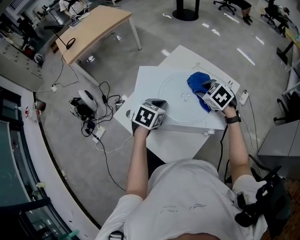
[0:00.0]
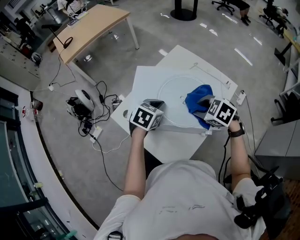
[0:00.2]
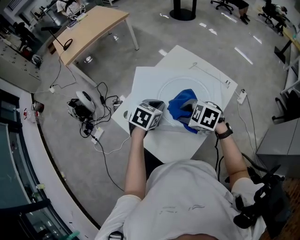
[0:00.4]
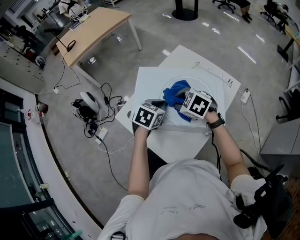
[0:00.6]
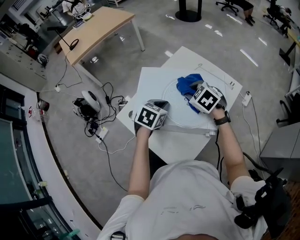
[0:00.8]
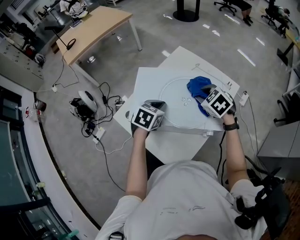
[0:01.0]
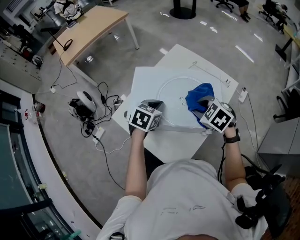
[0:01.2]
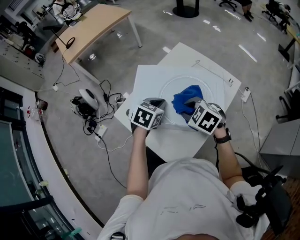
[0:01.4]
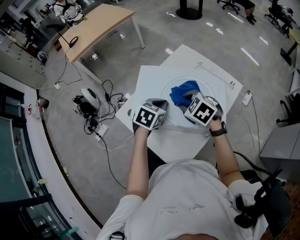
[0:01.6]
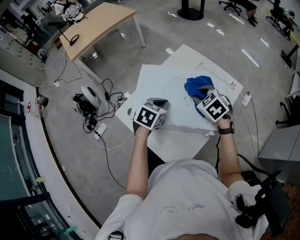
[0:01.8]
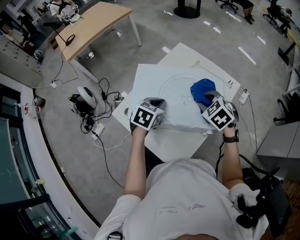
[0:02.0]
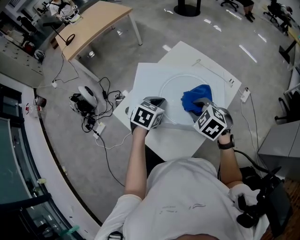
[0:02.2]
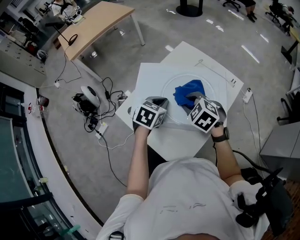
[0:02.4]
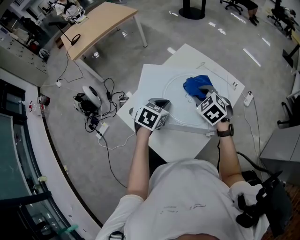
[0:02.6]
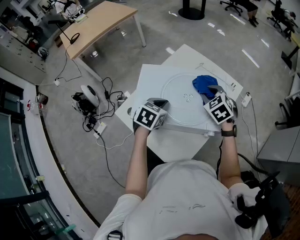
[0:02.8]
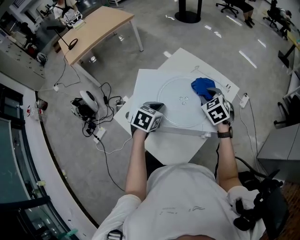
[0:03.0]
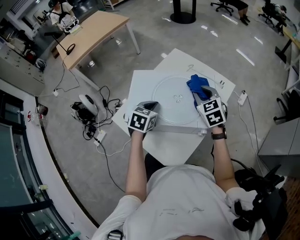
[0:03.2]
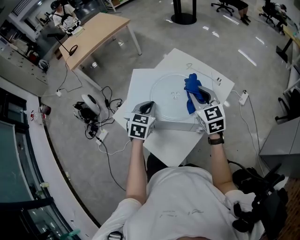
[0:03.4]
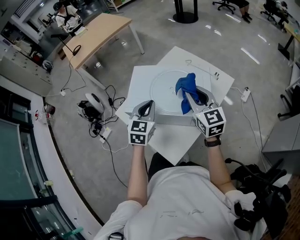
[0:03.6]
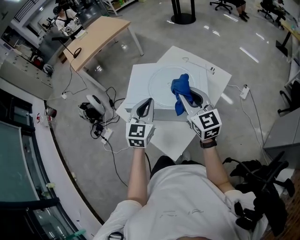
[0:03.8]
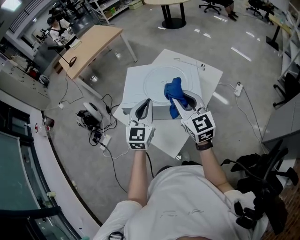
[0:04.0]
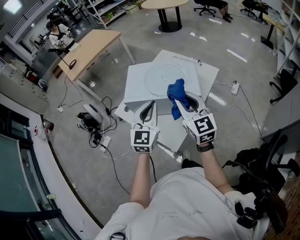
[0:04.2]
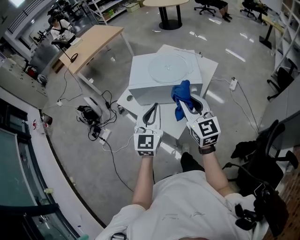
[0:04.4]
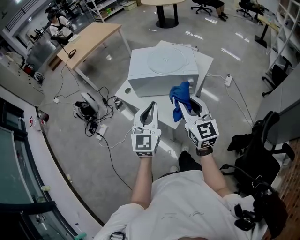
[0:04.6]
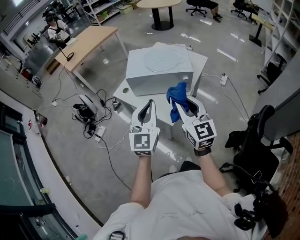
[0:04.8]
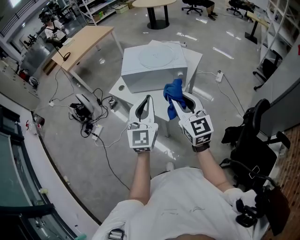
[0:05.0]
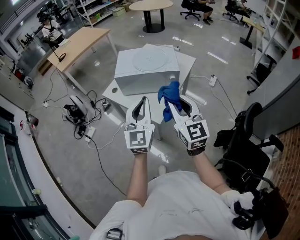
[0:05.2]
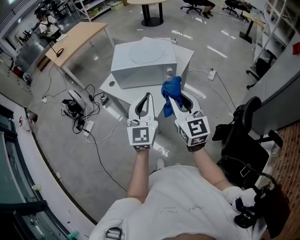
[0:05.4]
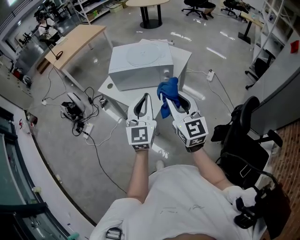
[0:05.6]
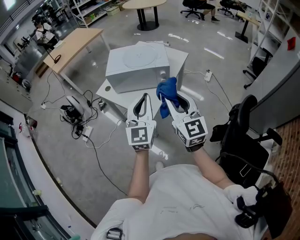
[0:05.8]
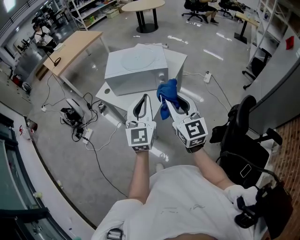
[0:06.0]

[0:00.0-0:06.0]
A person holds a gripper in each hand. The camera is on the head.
0:00.0 to 0:01.6: The right gripper moves left and right over roughly 10 cm, changing direction 2 times.
0:01.6 to 0:03.0: The right gripper goes left and right, about 10 cm each way, reversing 2 times, and changes its angle by approximately 30 degrees.
0:03.0 to 0:04.4: Both grippers move backward and upward, some 35 cm. The right gripper tilts its fingers about 40 degrees upward. The left gripper angles its fingers upward, by roughly 50 degrees.
0:04.4 to 0:06.0: The left gripper travels backward, to the right and upward by roughly 15 cm. The right gripper shifts about 15 cm backward and to the right.

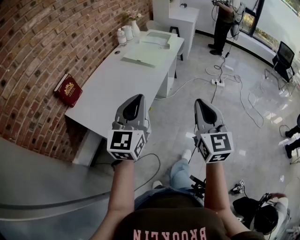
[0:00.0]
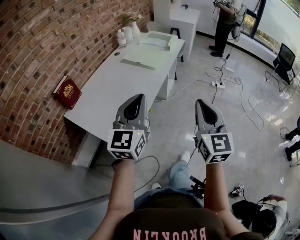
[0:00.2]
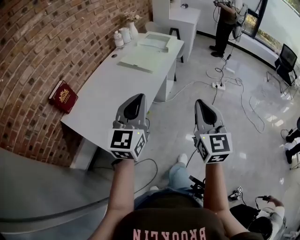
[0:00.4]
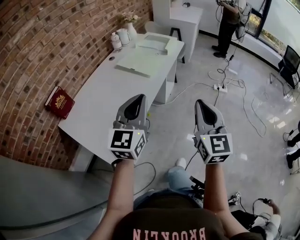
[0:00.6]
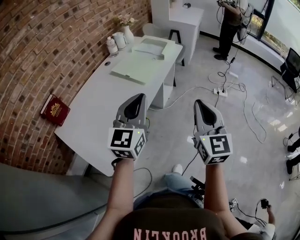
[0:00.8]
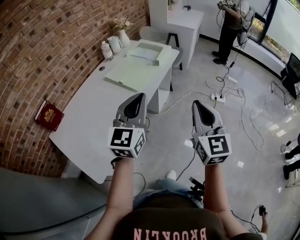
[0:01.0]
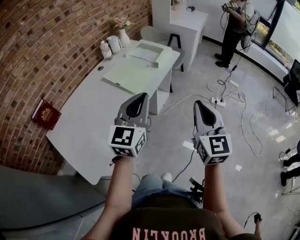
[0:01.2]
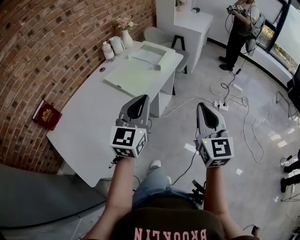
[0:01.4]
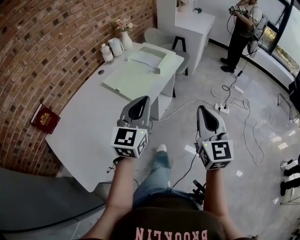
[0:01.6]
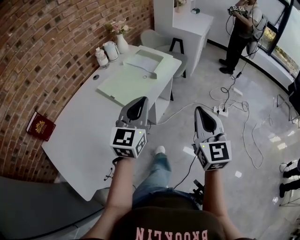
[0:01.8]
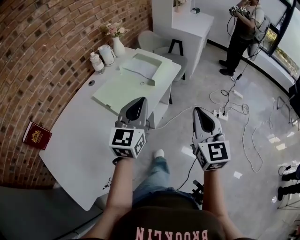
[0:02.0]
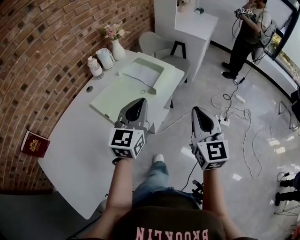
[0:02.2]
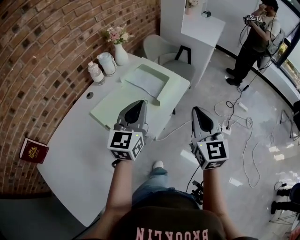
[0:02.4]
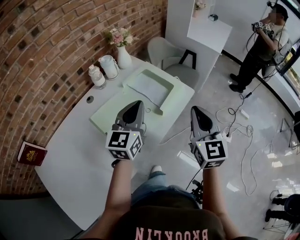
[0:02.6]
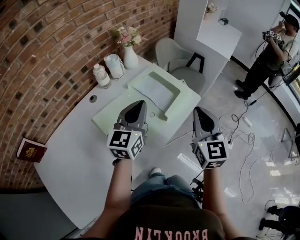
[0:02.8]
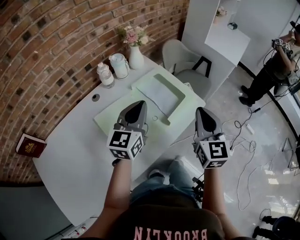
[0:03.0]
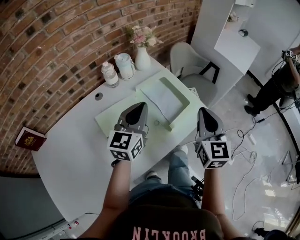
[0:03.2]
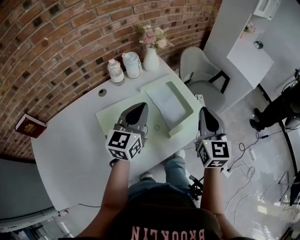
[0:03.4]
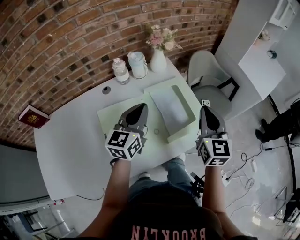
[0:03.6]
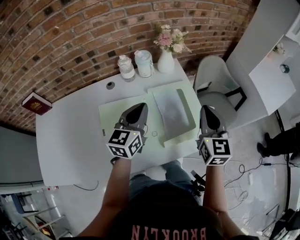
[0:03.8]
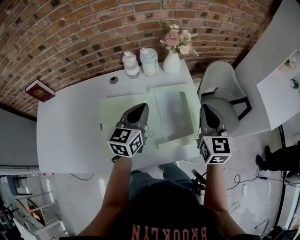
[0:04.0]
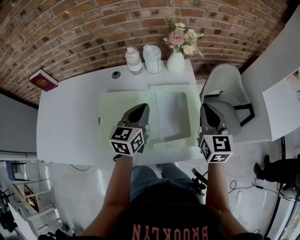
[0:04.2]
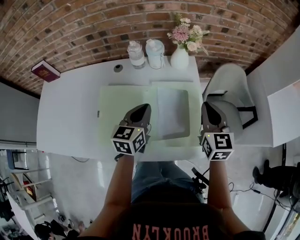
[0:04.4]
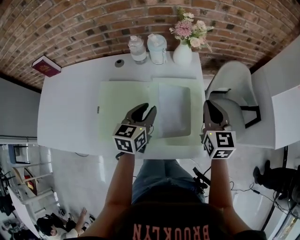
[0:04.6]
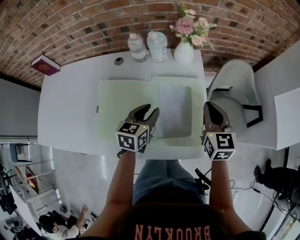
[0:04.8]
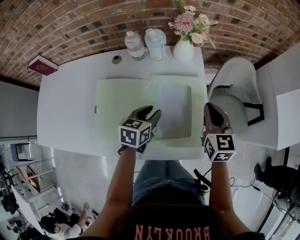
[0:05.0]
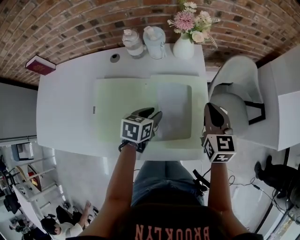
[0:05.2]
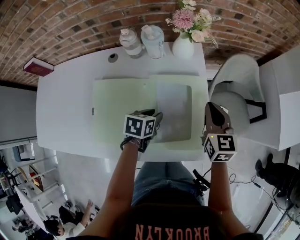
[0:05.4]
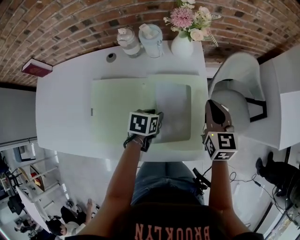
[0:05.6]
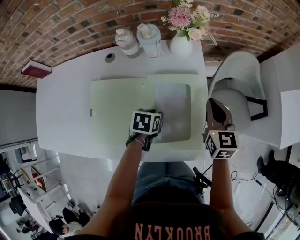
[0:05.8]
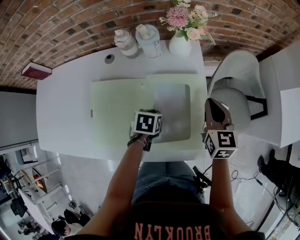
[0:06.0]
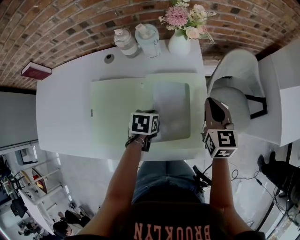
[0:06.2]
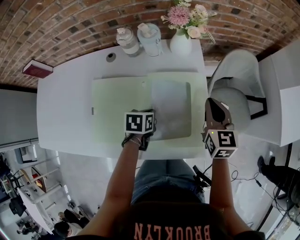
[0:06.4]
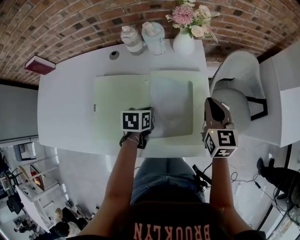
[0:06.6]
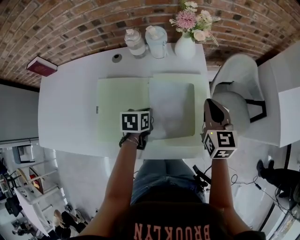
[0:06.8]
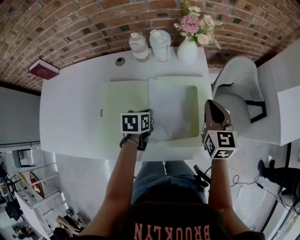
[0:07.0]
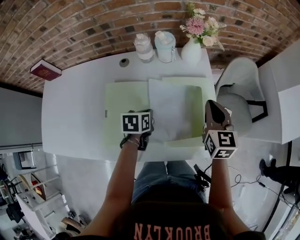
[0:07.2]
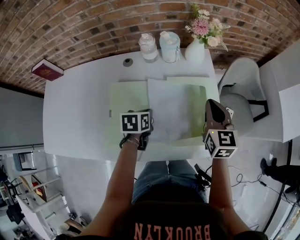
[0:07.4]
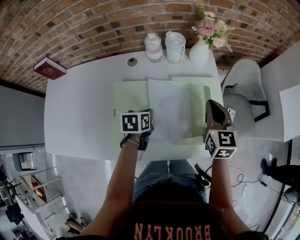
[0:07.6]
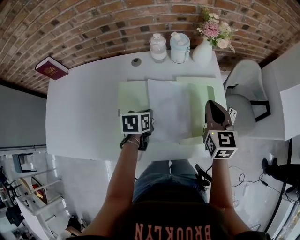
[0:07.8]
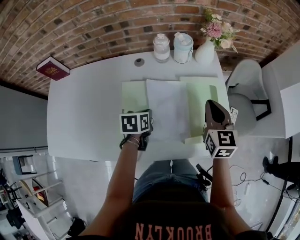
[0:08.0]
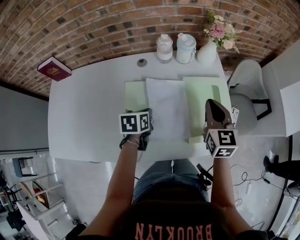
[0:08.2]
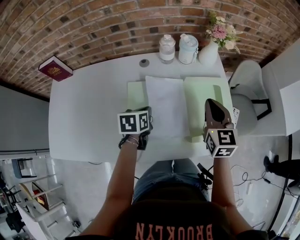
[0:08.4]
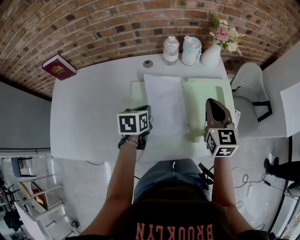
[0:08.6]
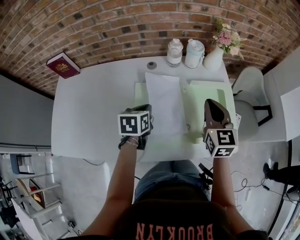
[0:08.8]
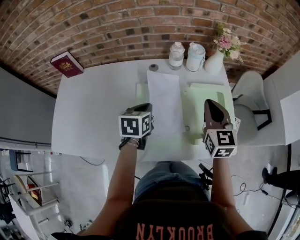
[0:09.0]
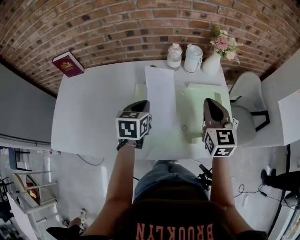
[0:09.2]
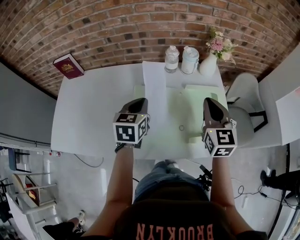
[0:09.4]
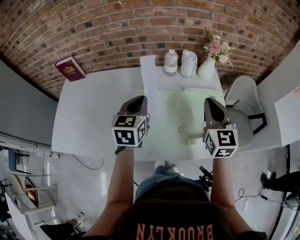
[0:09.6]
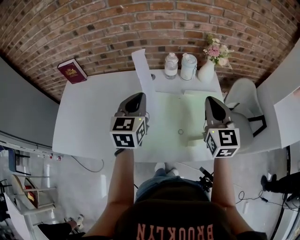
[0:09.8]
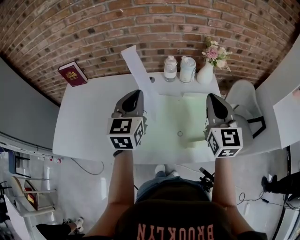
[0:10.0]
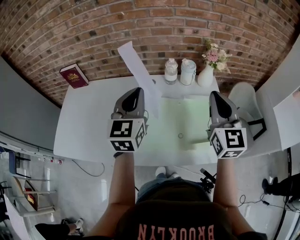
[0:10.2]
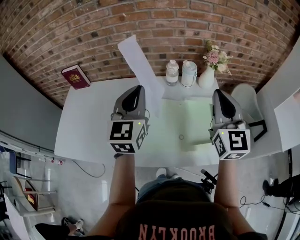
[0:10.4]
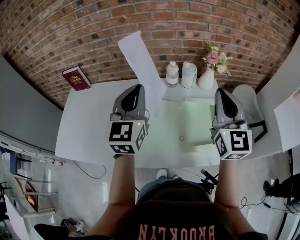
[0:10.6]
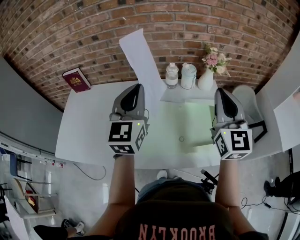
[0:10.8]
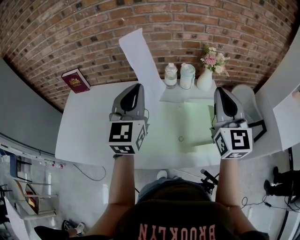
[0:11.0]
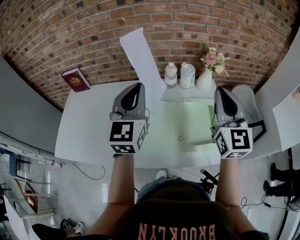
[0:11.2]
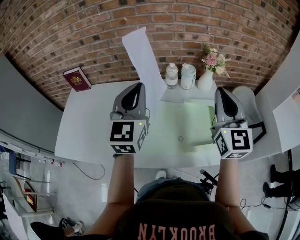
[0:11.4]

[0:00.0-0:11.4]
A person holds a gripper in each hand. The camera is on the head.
0:00.0 to 0:01.4: Both grippers travel together forward and to the right, roughly 35 cm.
0:01.4 to 0:02.8: The pair of grippers is taken forward, roughly 40 cm.
0:02.8 to 0:04.2: The right gripper changes place by roughly 30 cm, and changes its angle by about 40 degrees; the left gripper shifts by about 15 cm, and rotates approximately 40 degrees.
0:04.2 to 0:05.6: The right gripper travels downward and forward by some 10 cm; the left gripper moves downward, some 20 cm, angles its fingers downward, by about 40 degrees, and opens up.
0:05.6 to 0:07.2: The left gripper goes about 10 cm to the left, and closes up. Meanwhile the right gripper moves to the left, approximately 5 cm.
0:07.2 to 0:08.6: The left gripper goes some 15 cm to the left and upward, while the right gripper moves to the left, roughly 15 cm.
0:08.6 to 0:10.0: The left gripper moves upward, about 20 cm, and points its fingers approximately 40 degrees further upward, while the right gripper is displaced upward by roughly 15 cm.
0:10.0 to 0:11.4: The grippers both shift upward by about 10 cm.

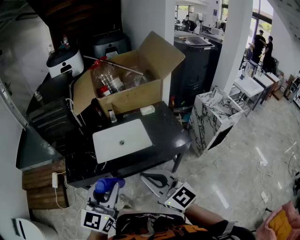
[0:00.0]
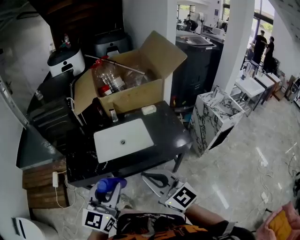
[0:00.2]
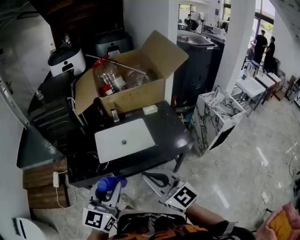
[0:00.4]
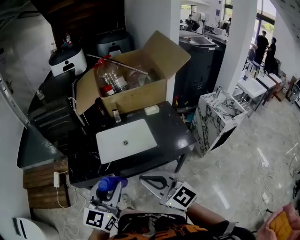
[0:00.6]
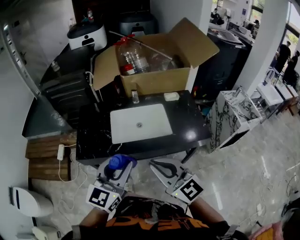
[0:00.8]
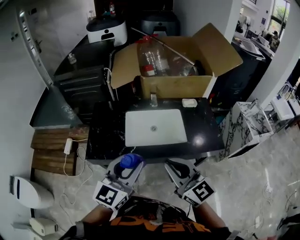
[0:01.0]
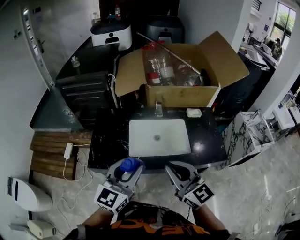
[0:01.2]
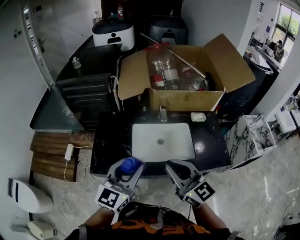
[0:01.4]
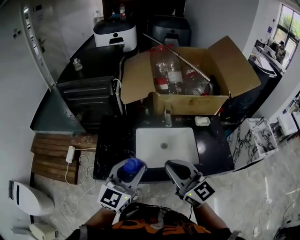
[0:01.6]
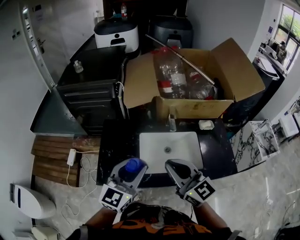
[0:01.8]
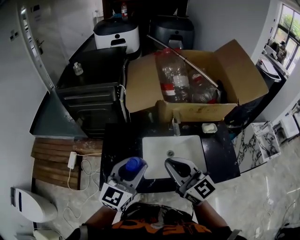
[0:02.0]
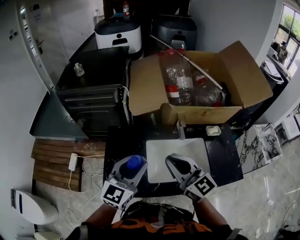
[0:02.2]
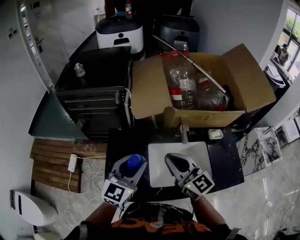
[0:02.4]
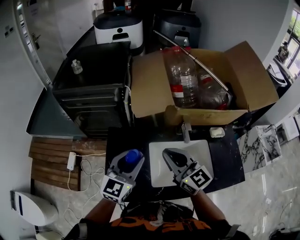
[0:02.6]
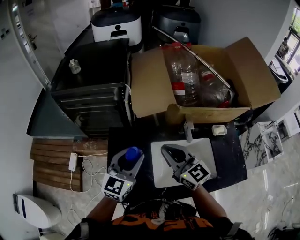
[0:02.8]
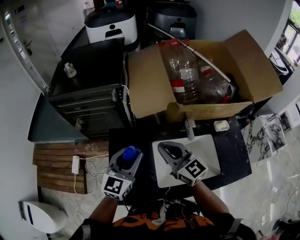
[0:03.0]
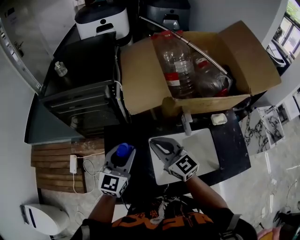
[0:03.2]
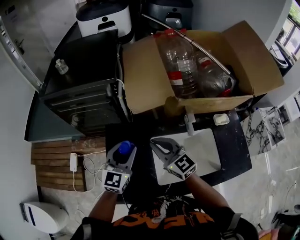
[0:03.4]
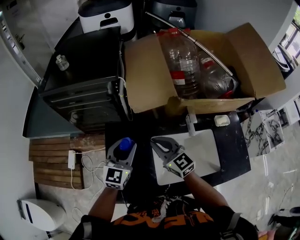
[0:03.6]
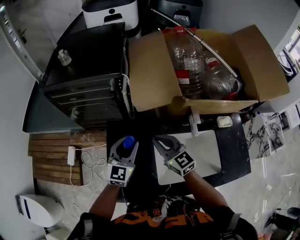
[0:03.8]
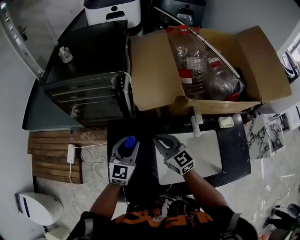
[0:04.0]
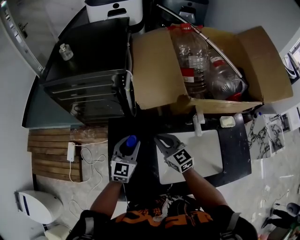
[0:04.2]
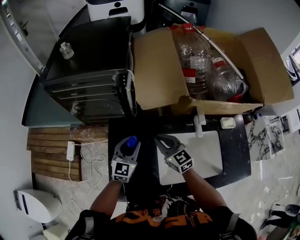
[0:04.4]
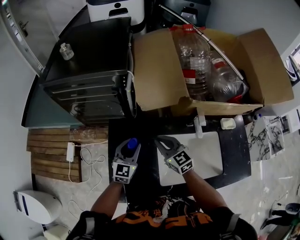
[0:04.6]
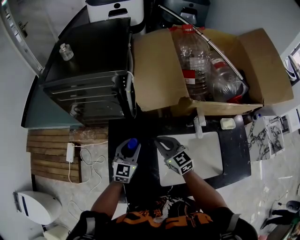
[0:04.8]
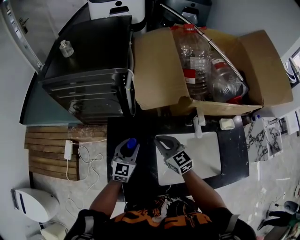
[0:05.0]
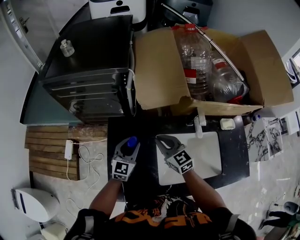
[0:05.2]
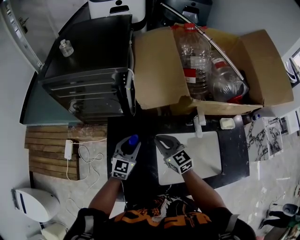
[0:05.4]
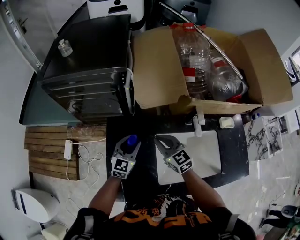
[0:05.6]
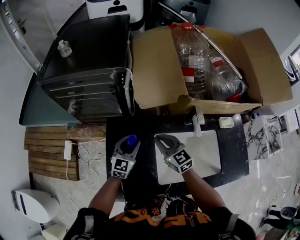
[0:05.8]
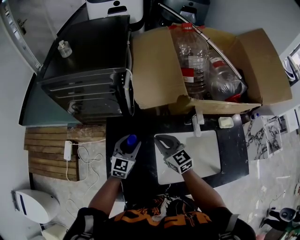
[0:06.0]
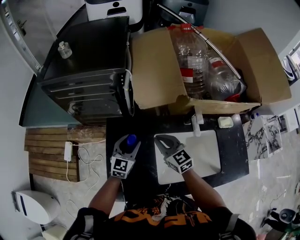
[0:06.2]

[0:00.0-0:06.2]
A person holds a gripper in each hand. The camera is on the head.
0:00.0 to 0:01.6: Both grippers travel together forward and to the left, roughly 25 cm.
0:01.6 to 0:03.2: Both grippers travel together forward and to the left, approximately 30 cm.
0:03.2 to 0:04.6: The grippers both shift downward by roughly 15 cm.
0:04.6 to 0:06.2: There are only small adjustments of the grippers.
